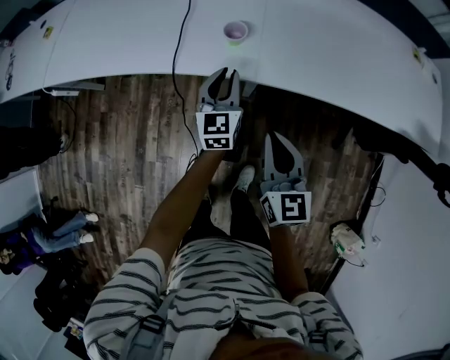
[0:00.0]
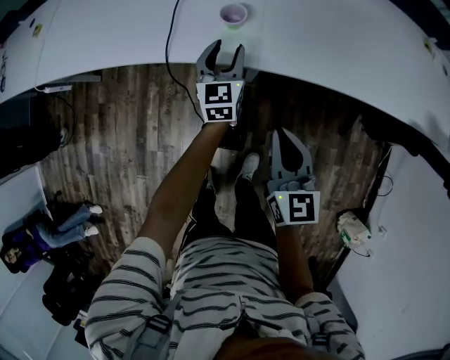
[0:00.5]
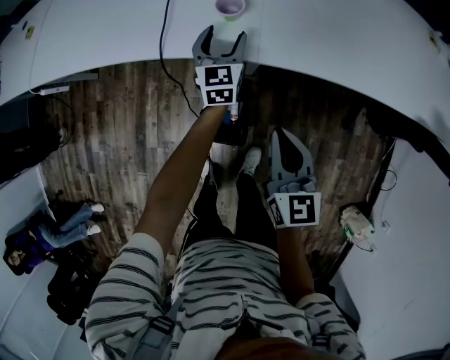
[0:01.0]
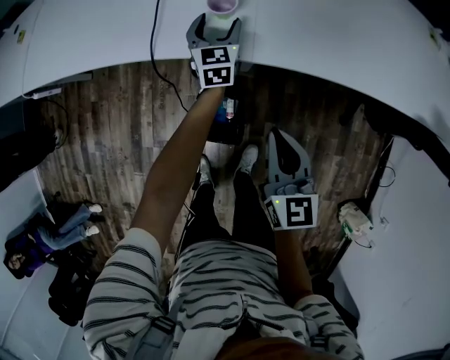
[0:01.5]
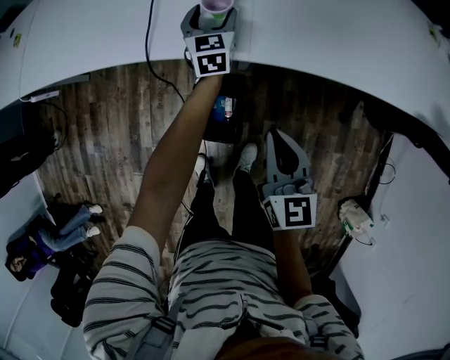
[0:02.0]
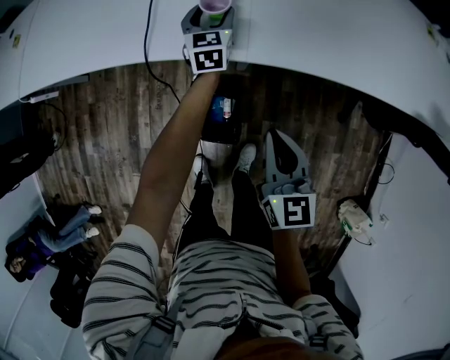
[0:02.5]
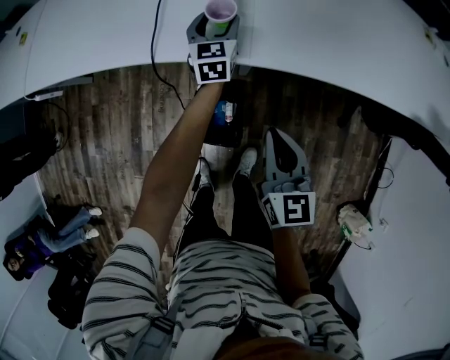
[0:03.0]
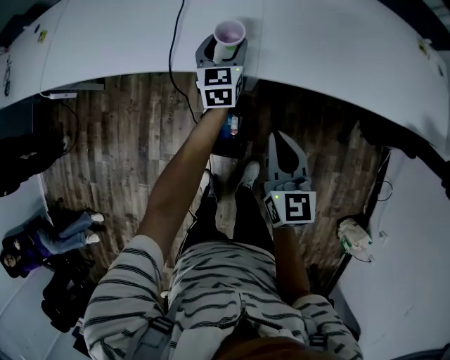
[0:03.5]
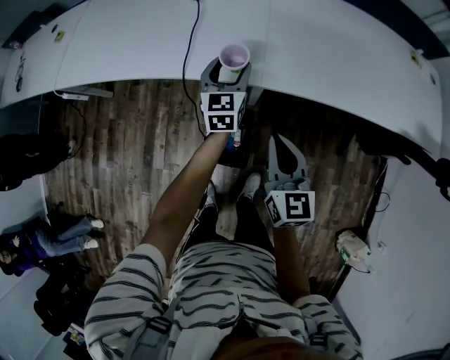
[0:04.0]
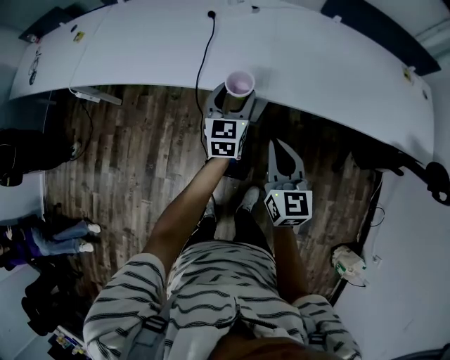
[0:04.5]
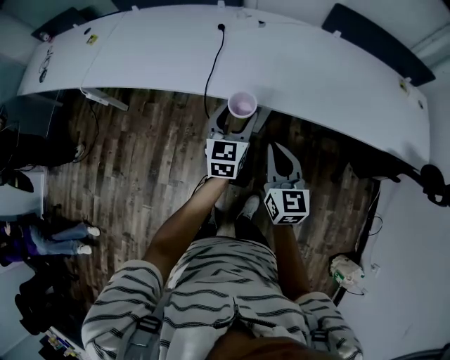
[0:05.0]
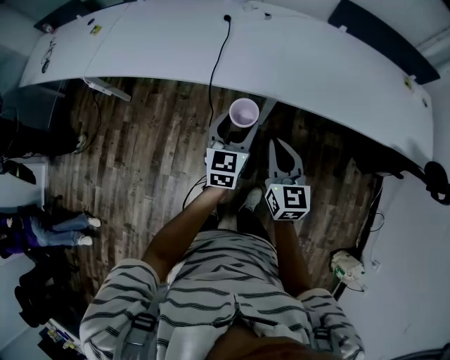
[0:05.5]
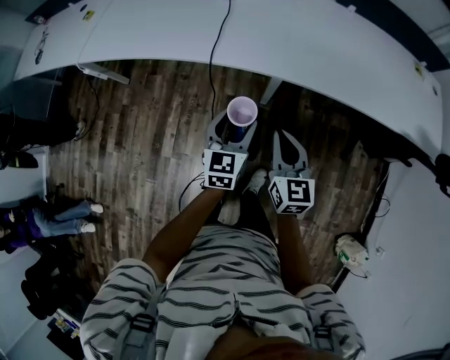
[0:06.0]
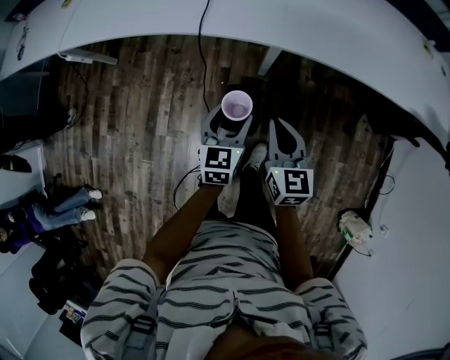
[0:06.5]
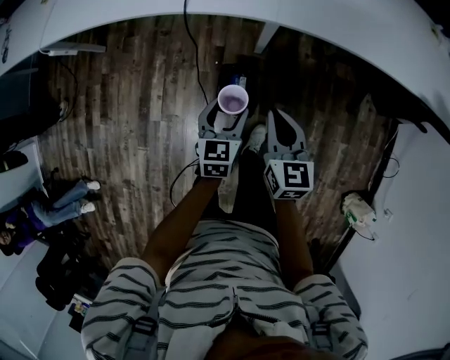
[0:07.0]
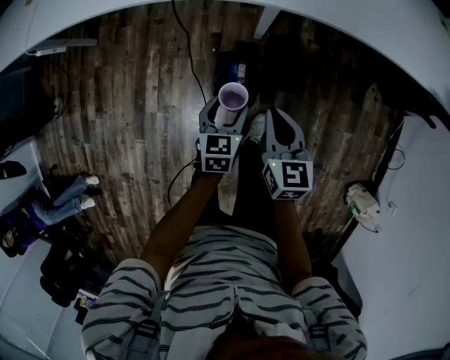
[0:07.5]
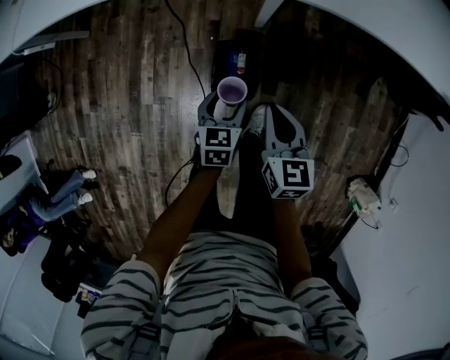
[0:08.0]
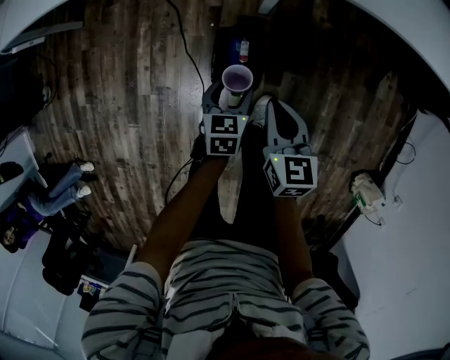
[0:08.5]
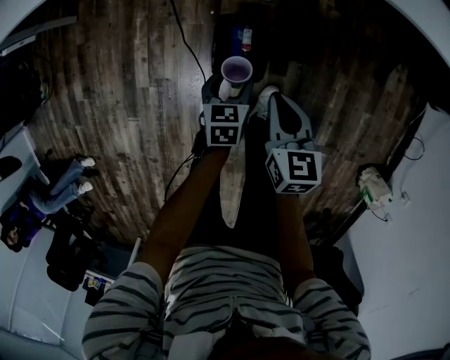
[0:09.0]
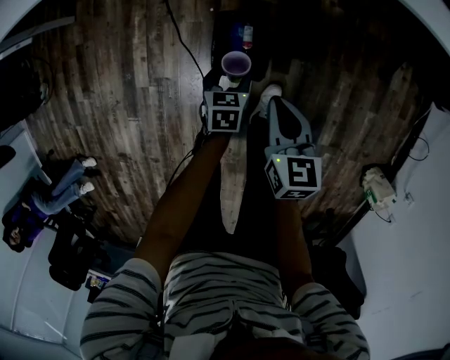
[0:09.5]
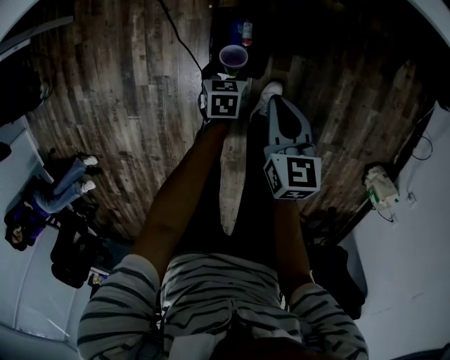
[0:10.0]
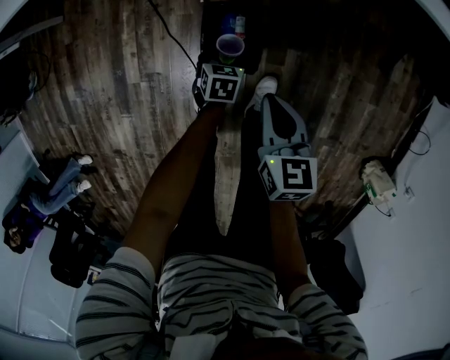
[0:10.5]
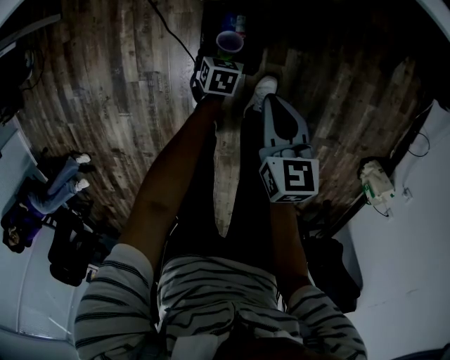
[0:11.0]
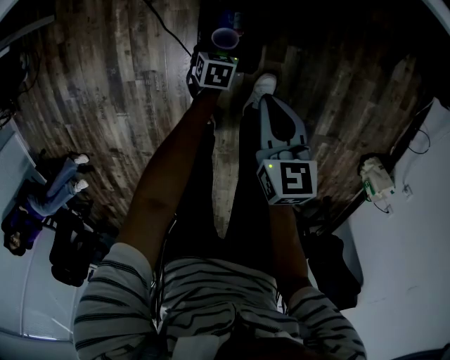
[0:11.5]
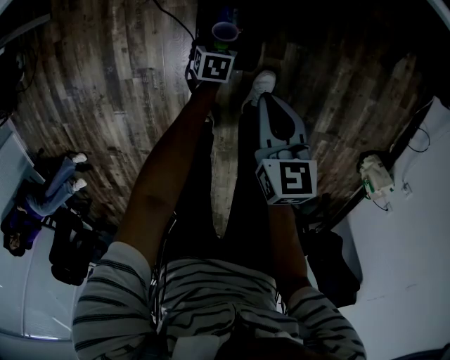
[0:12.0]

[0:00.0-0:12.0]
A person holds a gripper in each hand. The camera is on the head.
0:00.0 to 0:02.0: The right gripper travels downward by roughly 5 cm. The left gripper shifts some 20 cm forward and downward, and opens up.
0:02.0 to 0:04.0: The right gripper heads upward, covering about 10 cm, while the left gripper heads upward and backward, covering some 15 cm.
0:04.0 to 0:06.0: The left gripper is displaced backward by approximately 20 cm, while the right gripper goes roughly 5 cm backward.
0:06.0 to 0:08.0: Both grippers move downward, approximately 25 cm. The left gripper turns by roughly 30 degrees.
0:08.0 to 0:10.0: The right gripper heads downward, covering roughly 15 cm, while the left gripper heads downward, covering some 20 cm.
0:10.0 to 0:12.0: The left gripper shifts approximately 10 cm downward.

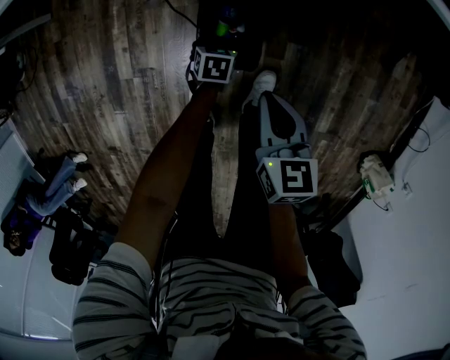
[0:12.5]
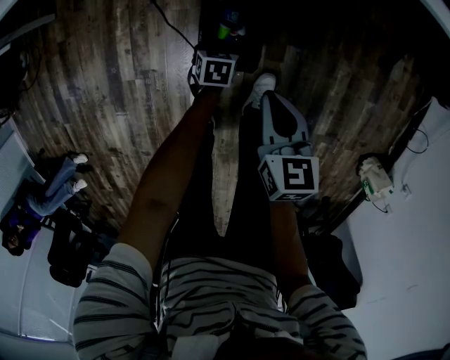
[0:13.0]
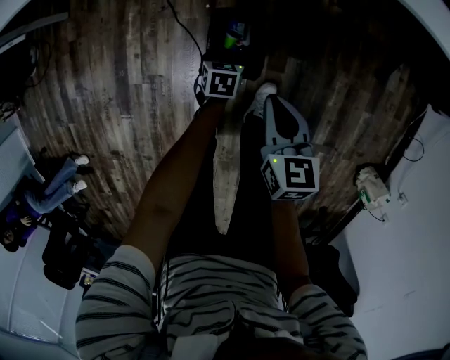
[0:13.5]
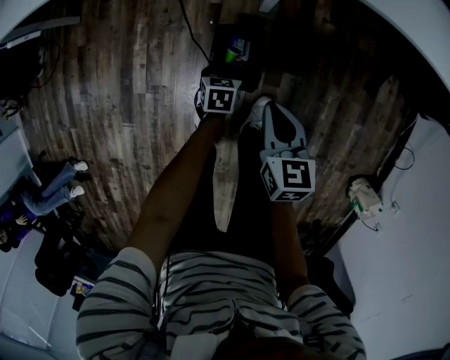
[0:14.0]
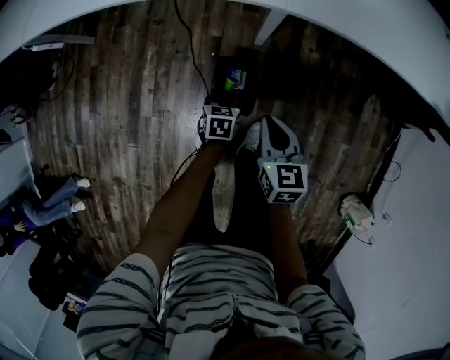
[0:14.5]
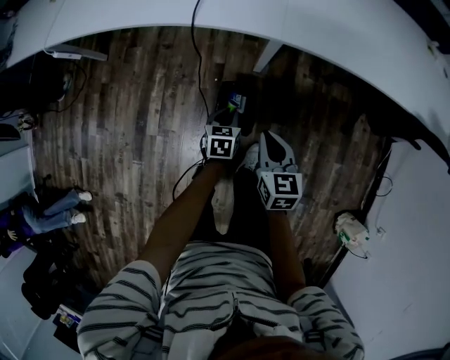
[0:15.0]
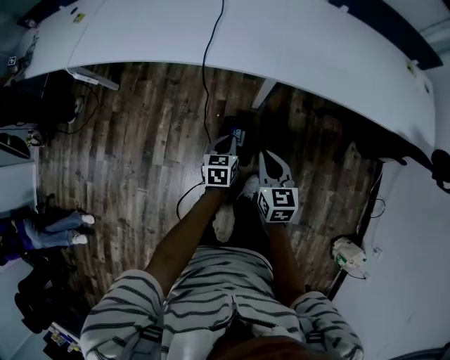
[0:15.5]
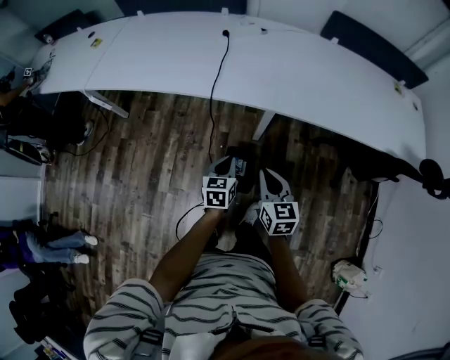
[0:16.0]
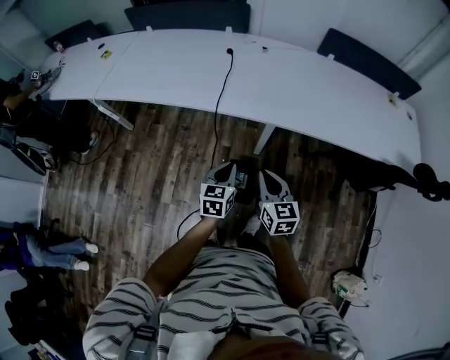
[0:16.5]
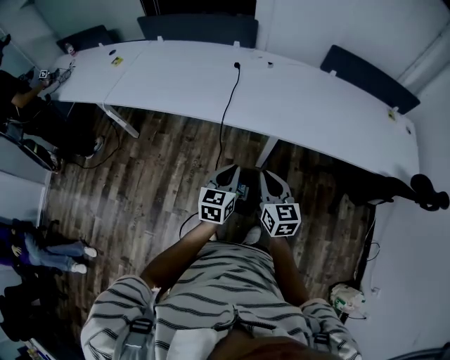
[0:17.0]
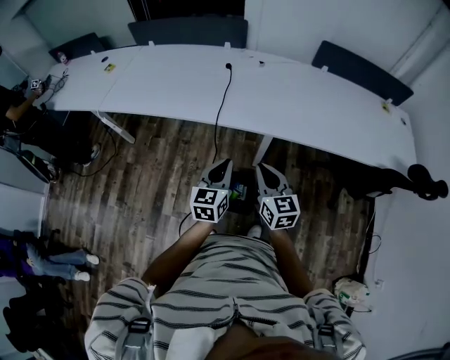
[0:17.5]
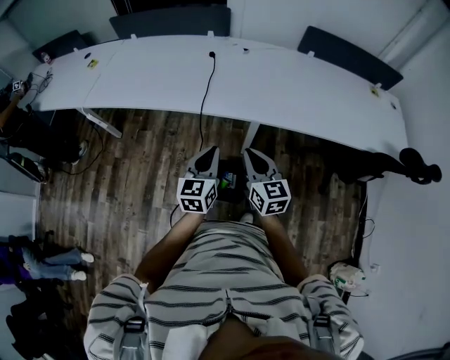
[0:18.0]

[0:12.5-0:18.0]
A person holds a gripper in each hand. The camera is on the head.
0:12.5 to 0:14.5: Both grippers travel together upward, roughly 20 cm. The left gripper closes up.
0:14.5 to 0:16.0: The right gripper shifts some 15 cm upward, while the left gripper goes roughly 25 cm upward, and changes its angle by about 20 degrees.
0:16.0 to 0:18.0: The right gripper goes roughly 10 cm upward. The left gripper goes some 15 cm upward, and swivels about 20 degrees.

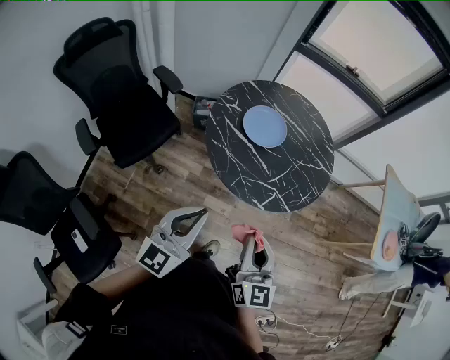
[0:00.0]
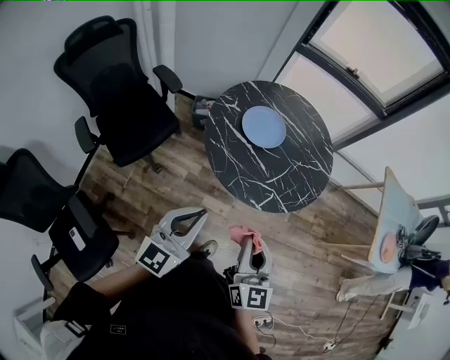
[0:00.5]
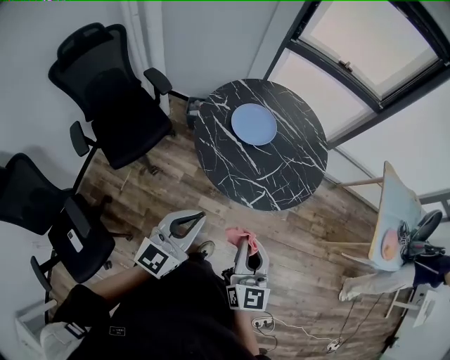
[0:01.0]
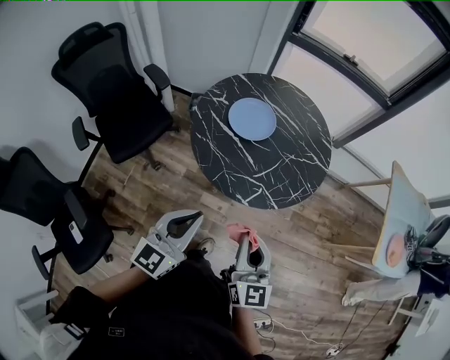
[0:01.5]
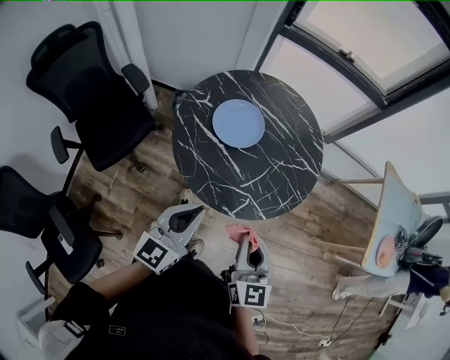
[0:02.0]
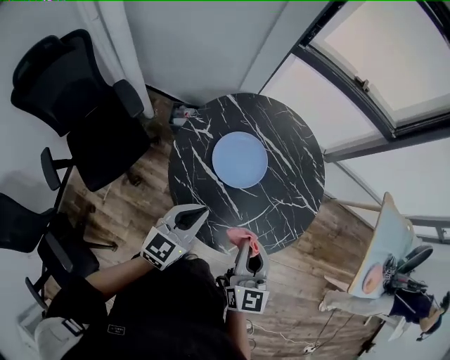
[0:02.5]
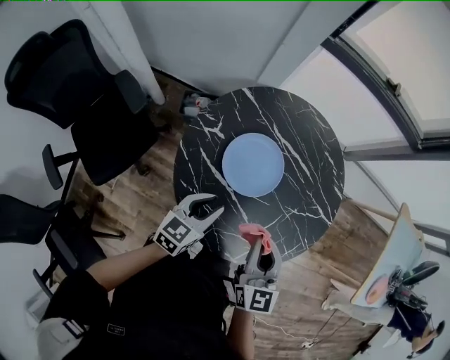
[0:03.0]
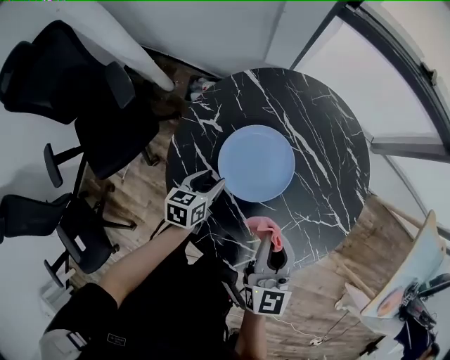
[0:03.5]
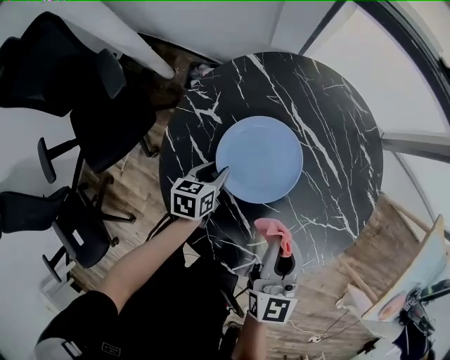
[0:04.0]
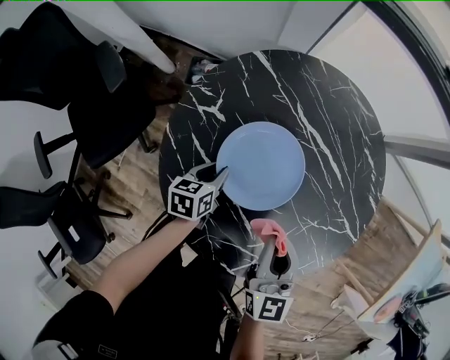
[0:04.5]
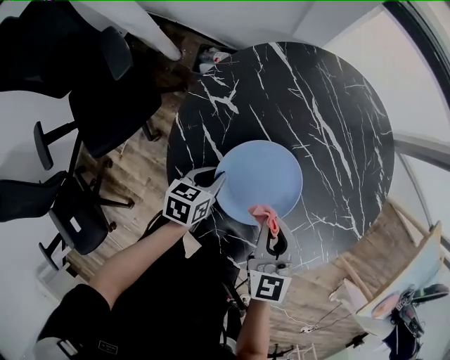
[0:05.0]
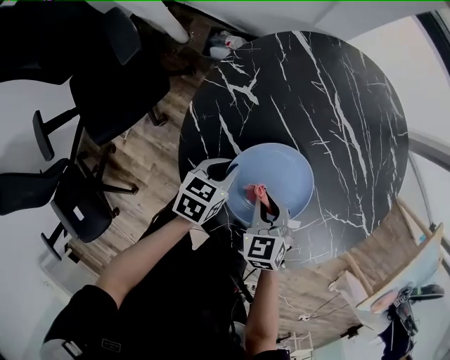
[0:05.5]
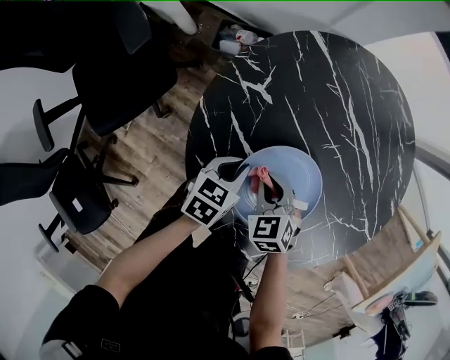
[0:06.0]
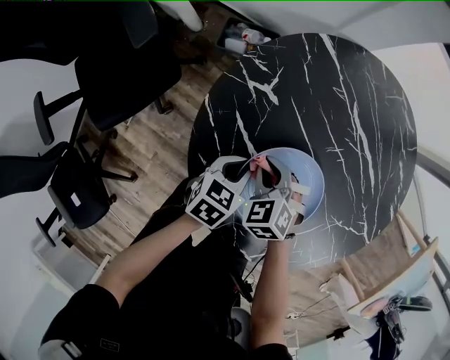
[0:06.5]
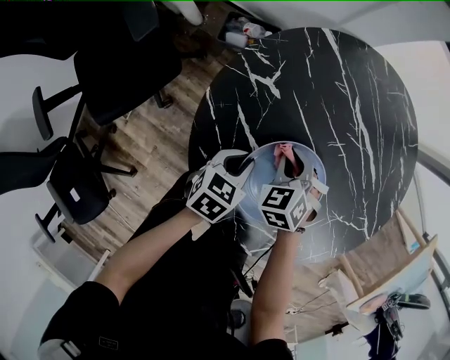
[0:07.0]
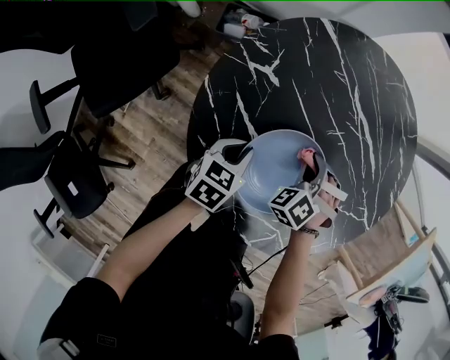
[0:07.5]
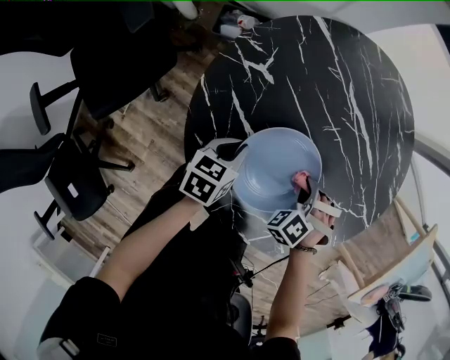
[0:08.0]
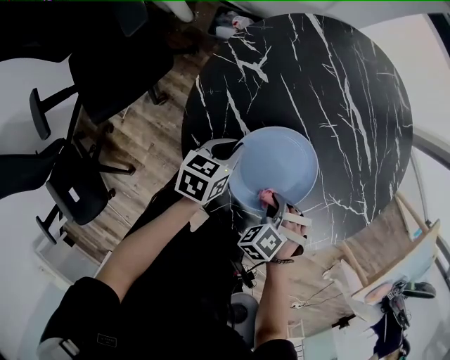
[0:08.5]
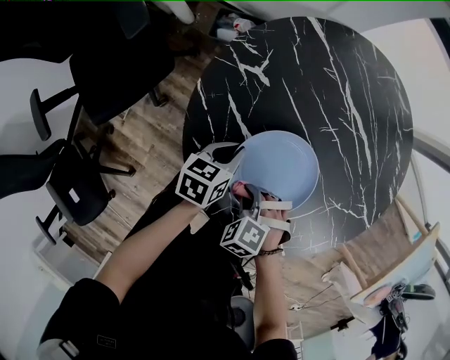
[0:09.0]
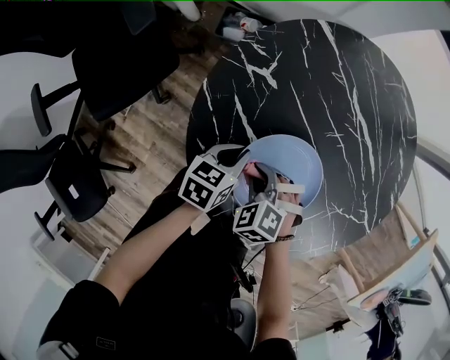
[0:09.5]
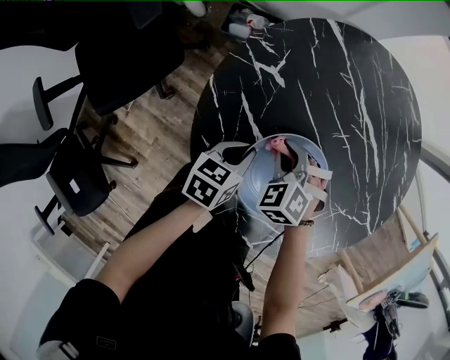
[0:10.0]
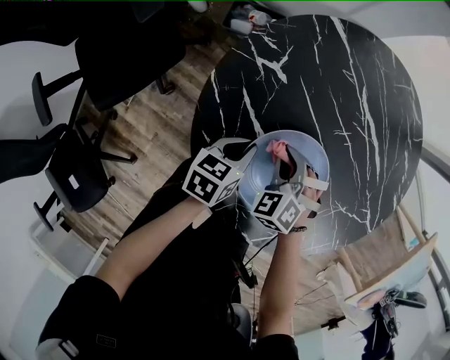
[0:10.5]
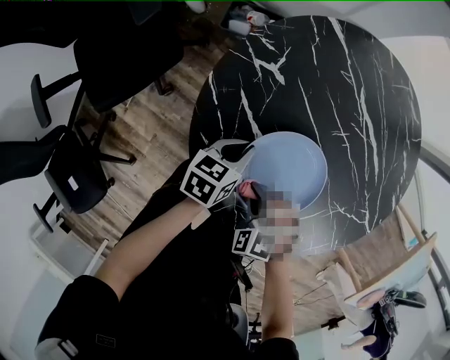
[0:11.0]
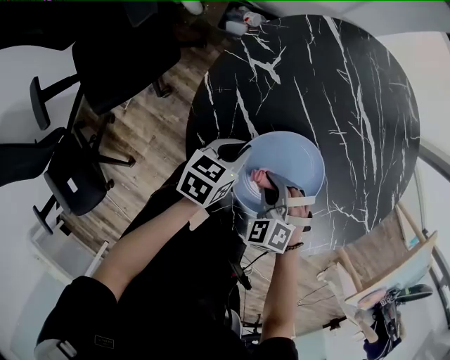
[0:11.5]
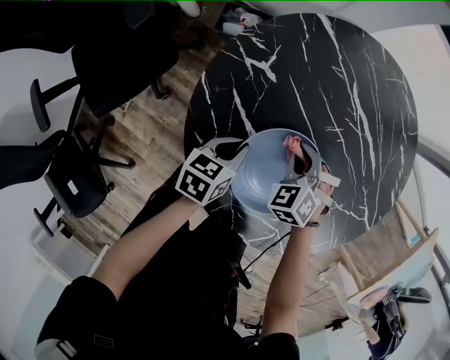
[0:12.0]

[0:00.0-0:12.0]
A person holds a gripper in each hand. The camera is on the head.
0:00.0 to 0:02.0: The two grippers go some 15 cm forward and to the right.
0:02.0 to 0:04.0: The right gripper is displaced forward and downward by about 35 cm. The left gripper moves downward and forward, some 50 cm, points its fingers some 40 degrees further downward, and opens.
0:04.0 to 0:06.0: The left gripper moves backward, roughly 5 cm, and closes up, while the right gripper moves downward and to the left, about 25 cm, and tips its fingers downward by some 40 degrees.
0:06.0 to 0:08.0: The right gripper shifts by roughly 15 cm, and rotates about 50 degrees.
0:08.0 to 0:10.0: The right gripper shifts by some 15 cm, and turns by roughly 30 degrees.
0:10.0 to 0:12.0: The right gripper shifts about 5 cm to the right, and goes backward and returns, about 15 cm each way.
